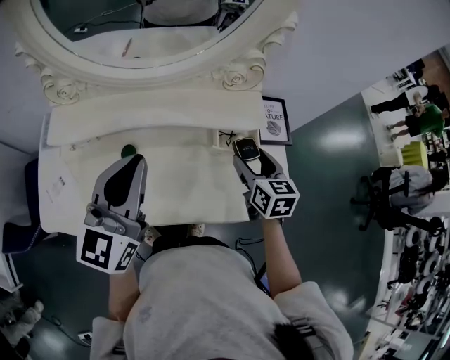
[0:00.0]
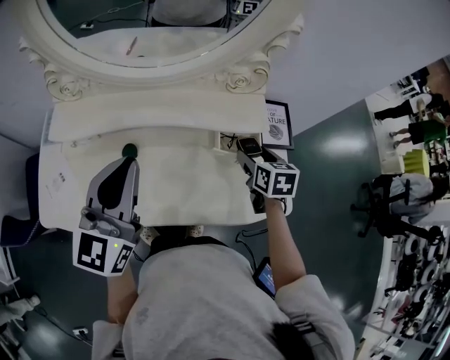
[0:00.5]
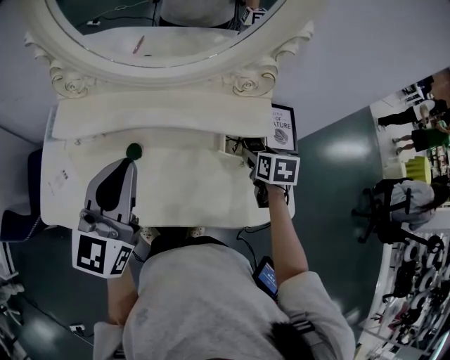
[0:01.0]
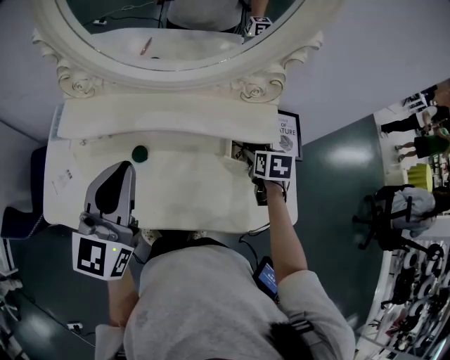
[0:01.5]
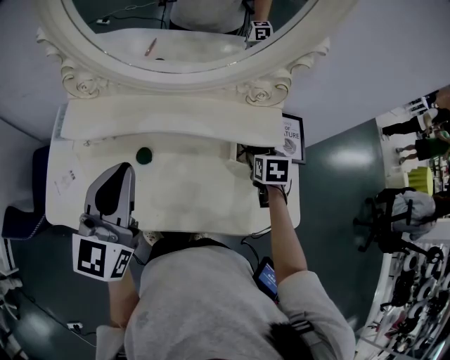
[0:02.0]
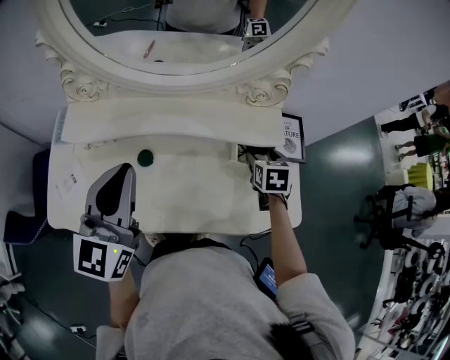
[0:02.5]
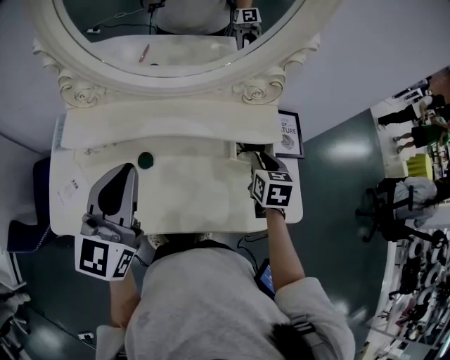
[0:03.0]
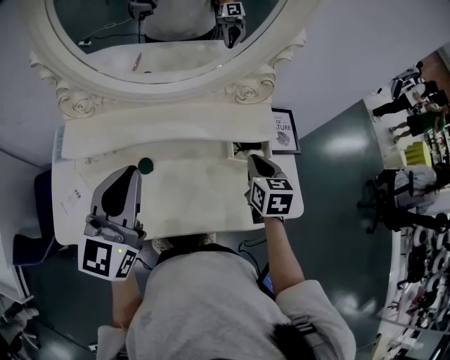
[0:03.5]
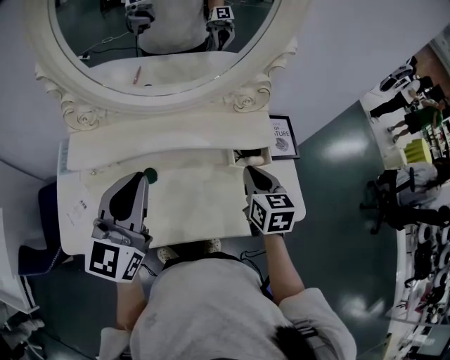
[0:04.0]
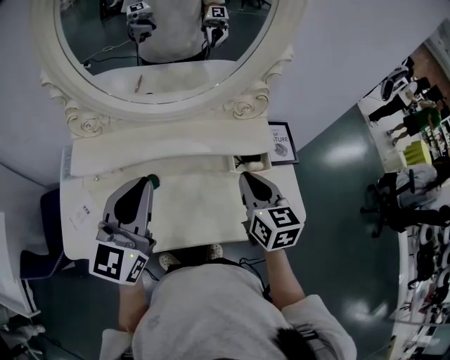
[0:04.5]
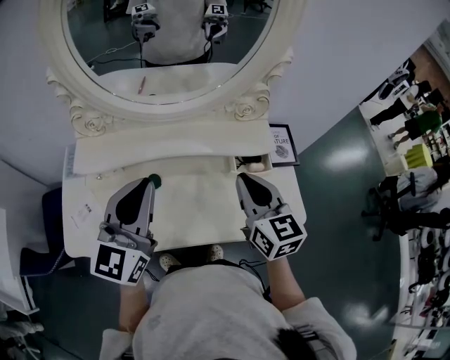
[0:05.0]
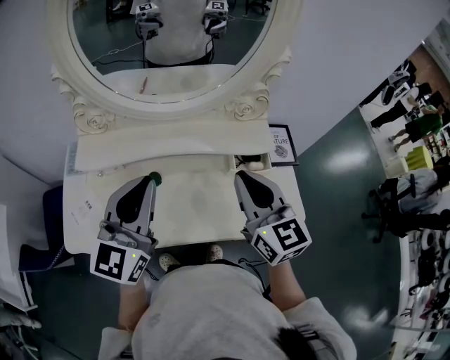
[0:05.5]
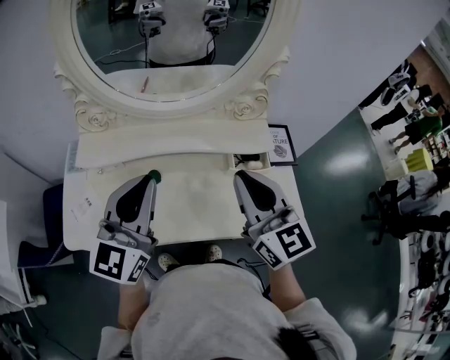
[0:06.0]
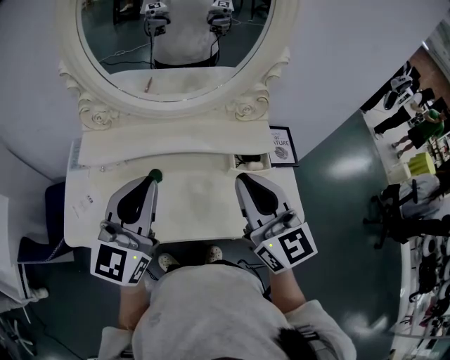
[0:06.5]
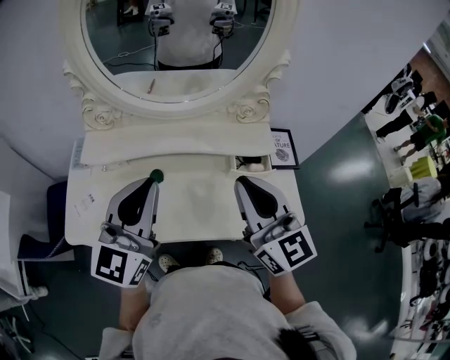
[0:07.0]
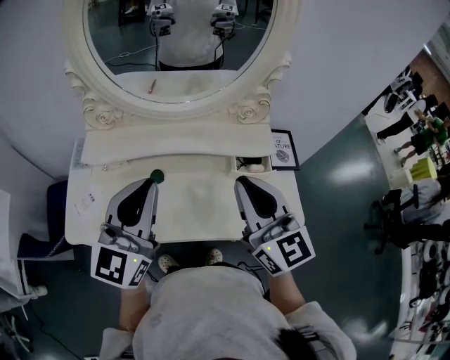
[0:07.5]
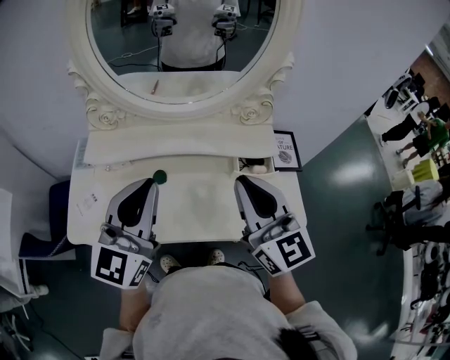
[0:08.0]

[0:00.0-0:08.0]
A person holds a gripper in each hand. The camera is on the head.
0:00.0 to 0:02.0: The right gripper shifts some 10 cm forward and downward, and turns by approximately 30 degrees. The left gripper is displaced to the left by some 5 cm.
0:02.0 to 0:04.0: The right gripper heads upward, backward and to the left, covering some 15 cm, swivels roughly 30 degrees, and closes its fingers.
0:04.0 to 0:06.0: The right gripper goes approximately 20 cm upward, backward and to the left, and turns by about 40 degrees.
0:06.0 to 0:08.0: There are only small adjustments of the grippers.

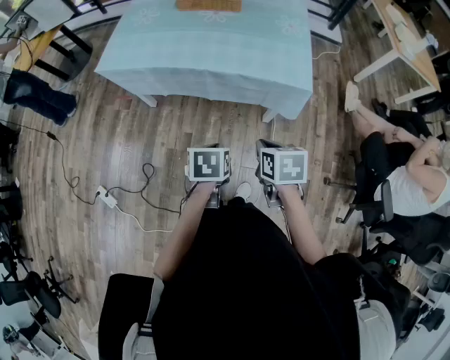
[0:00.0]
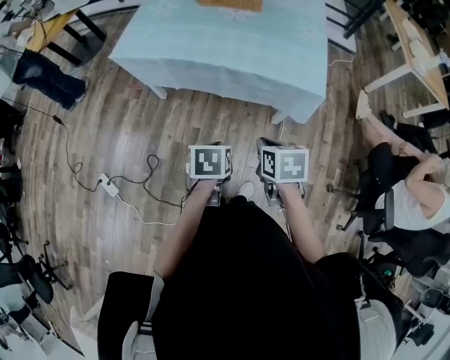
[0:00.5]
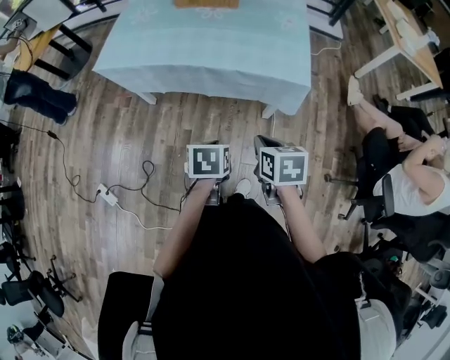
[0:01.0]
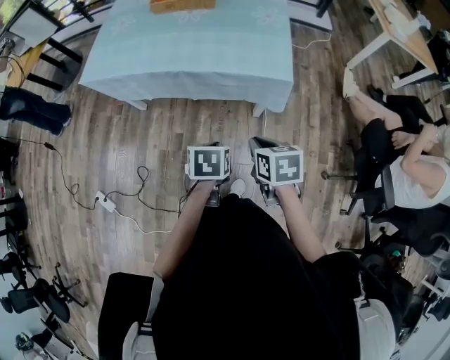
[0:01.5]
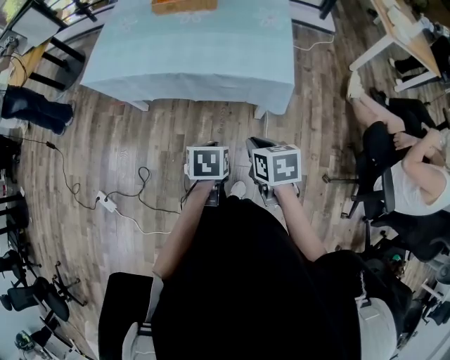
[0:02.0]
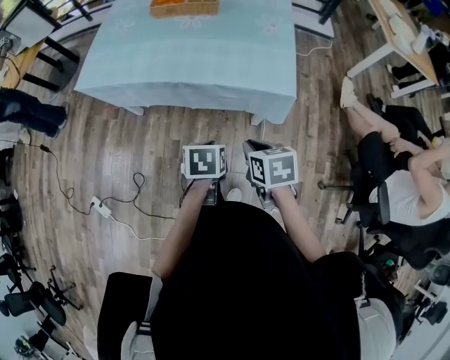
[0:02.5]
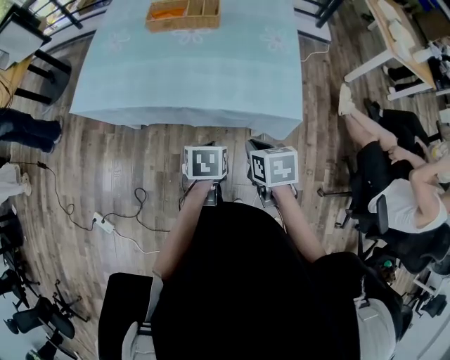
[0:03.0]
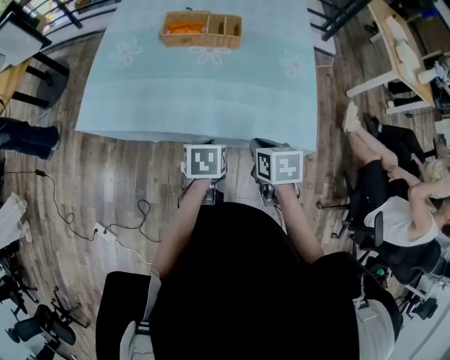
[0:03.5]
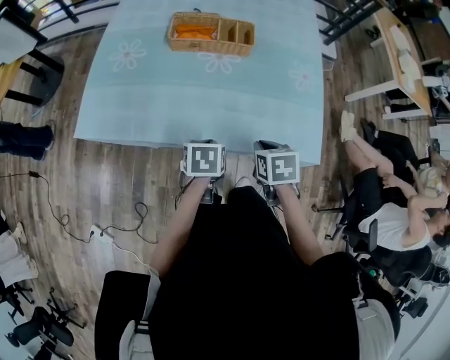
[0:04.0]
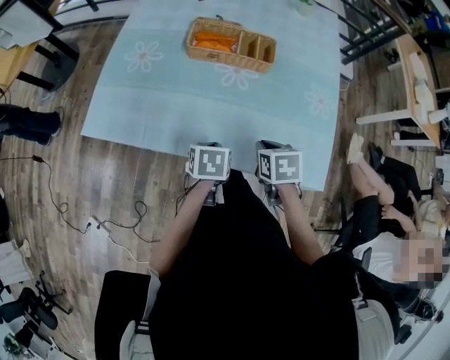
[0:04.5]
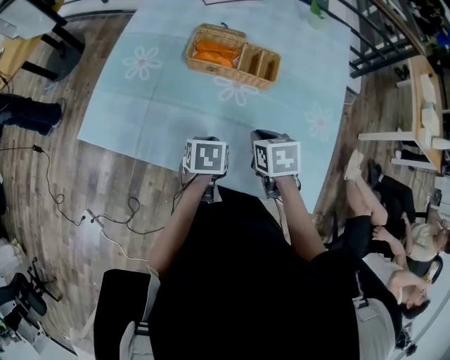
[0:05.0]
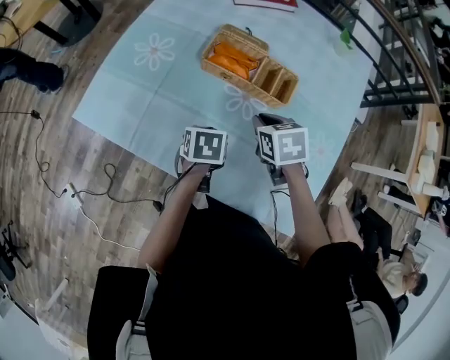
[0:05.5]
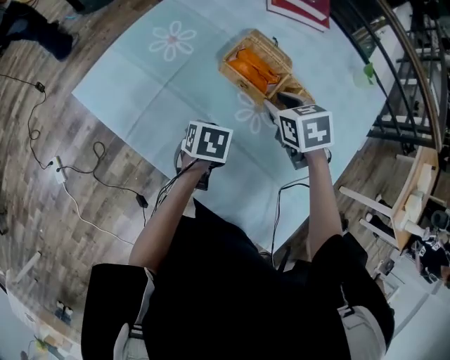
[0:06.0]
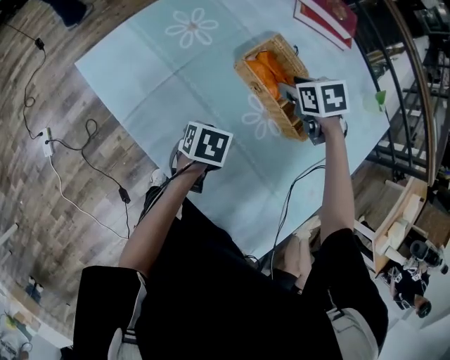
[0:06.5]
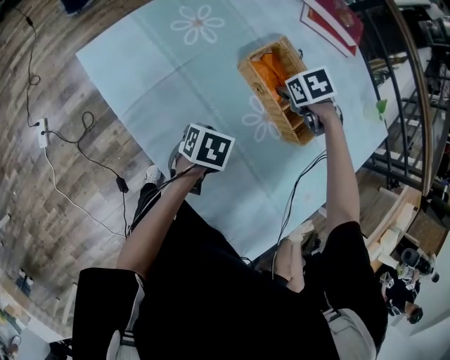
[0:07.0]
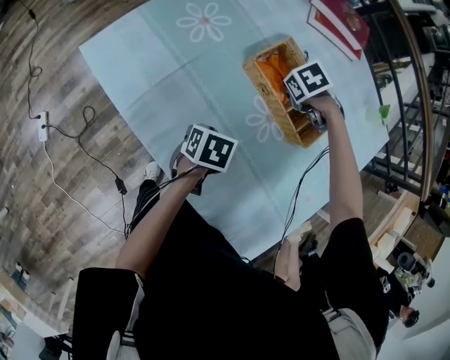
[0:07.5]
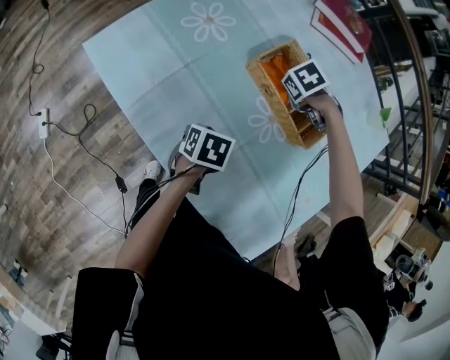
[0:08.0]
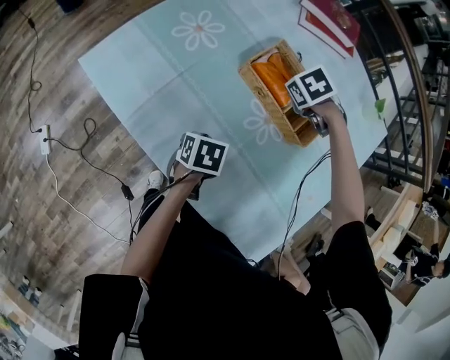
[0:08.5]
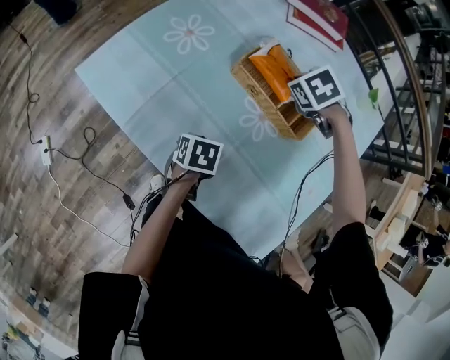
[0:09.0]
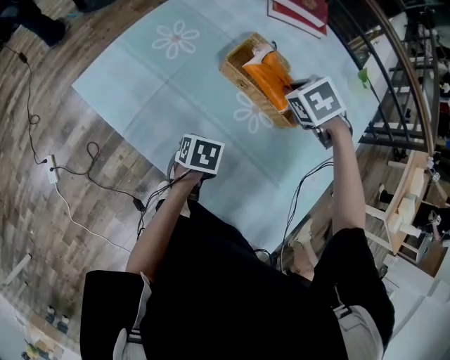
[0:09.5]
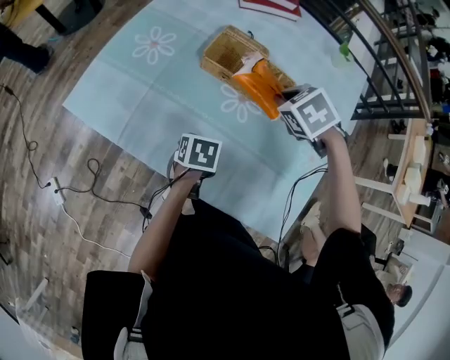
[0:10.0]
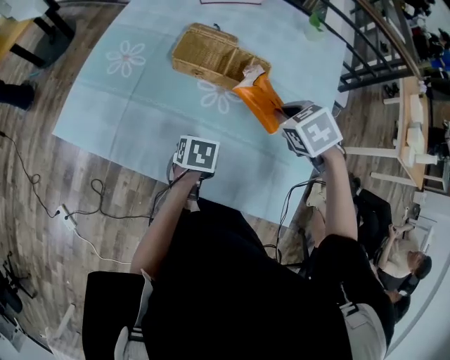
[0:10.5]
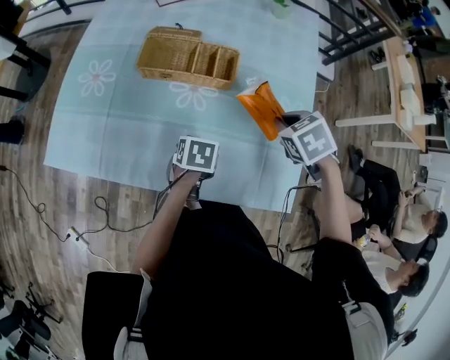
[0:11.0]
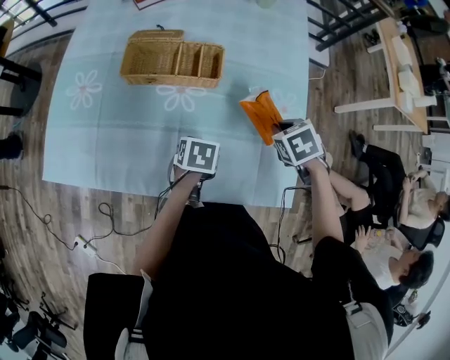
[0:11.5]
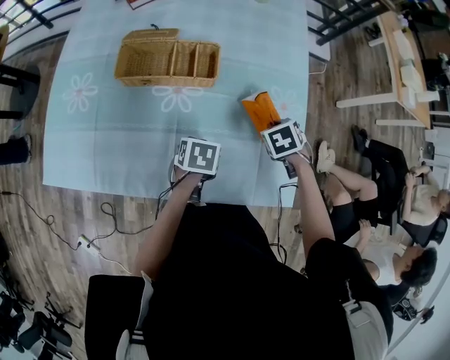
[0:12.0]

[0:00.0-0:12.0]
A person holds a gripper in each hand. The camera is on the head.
0:00.0 to 0:02.0: The two grippers go roughly 5 cm to the right.
0:02.0 to 0:04.0: The left gripper goes roughly 35 cm forward and to the left; the right gripper is displaced forward by about 30 cm.
0:04.0 to 0:06.0: The right gripper changes place by roughly 40 cm, twists roughly 40 degrees counterclockwise, seen from behind, and opens up. The left gripper ends up roughly 25 cm from where it was, and rotates some 20 degrees.
0:06.0 to 0:08.0: The left gripper goes approximately 5 cm downward. Meanwhile the right gripper is displaced downward by some 15 cm, swivels some 40 degrees, and closes.
0:08.0 to 0:10.0: The left gripper changes place by about 5 cm, while the right gripper shifts about 15 cm upward, and rotates roughly 20 degrees.
0:10.0 to 0:12.0: The right gripper changes place by approximately 30 cm, and rotates around the line of its fingers by approximately 40 degrees, clockwise from behind. The left gripper changes place by about 15 cm, and turns by some 30 degrees.

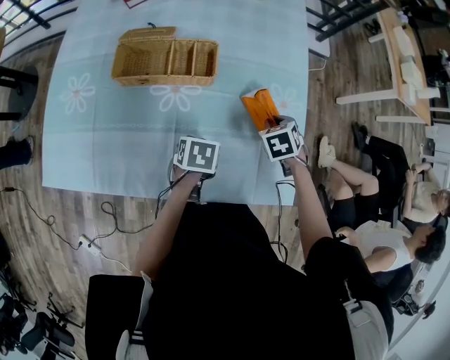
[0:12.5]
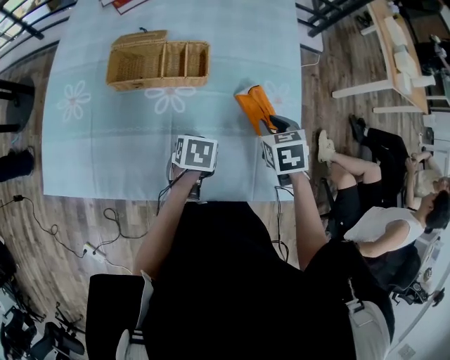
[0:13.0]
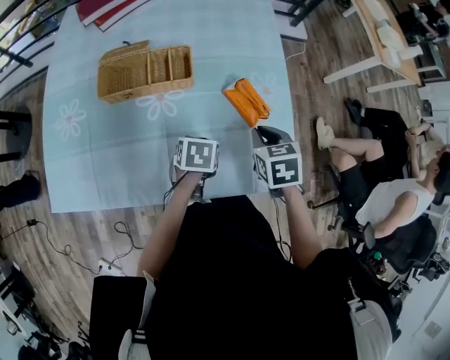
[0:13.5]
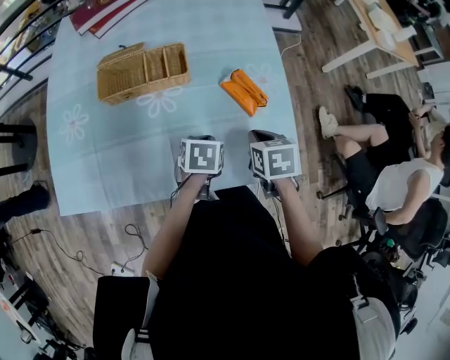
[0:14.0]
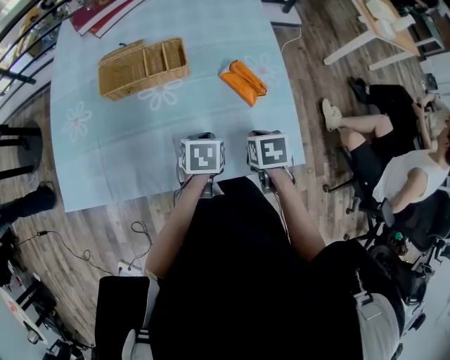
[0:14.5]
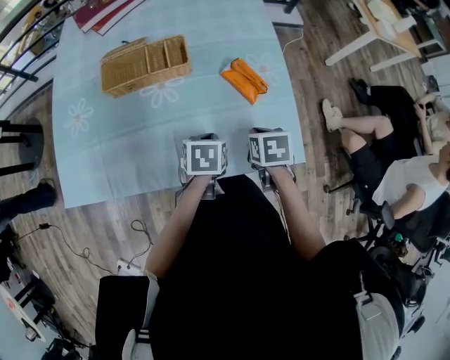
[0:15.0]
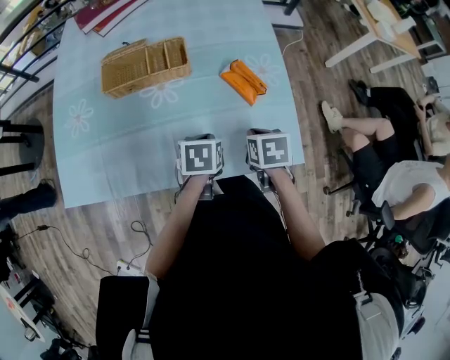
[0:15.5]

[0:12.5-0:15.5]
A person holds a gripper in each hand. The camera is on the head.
0:12.5 to 0:14.0: The right gripper goes about 15 cm backward and upward, and rotates some 30 degrees. Meanwhile the left gripper moves about 5 cm.
0:14.0 to 0:15.5: The grippers make only small movements.

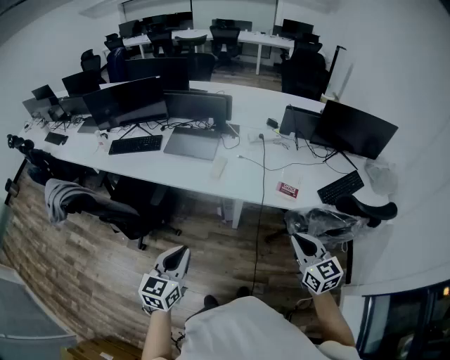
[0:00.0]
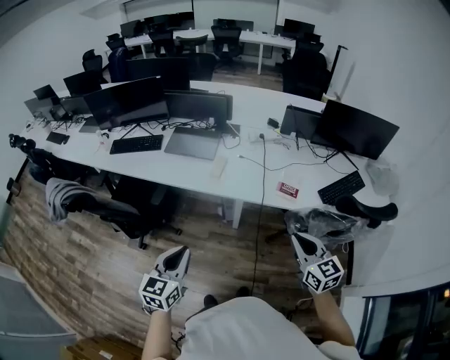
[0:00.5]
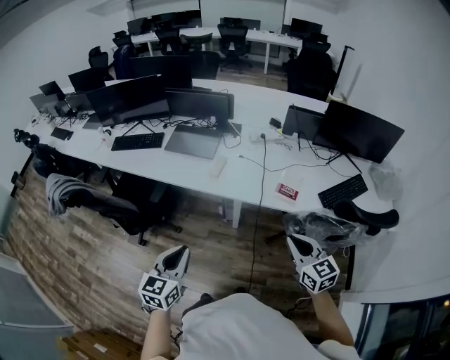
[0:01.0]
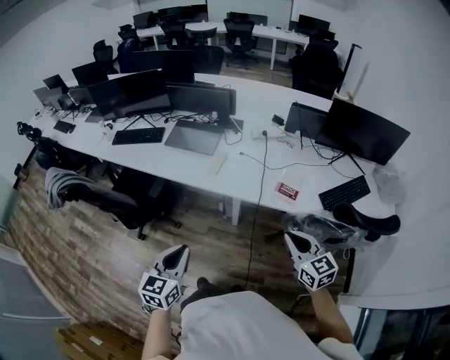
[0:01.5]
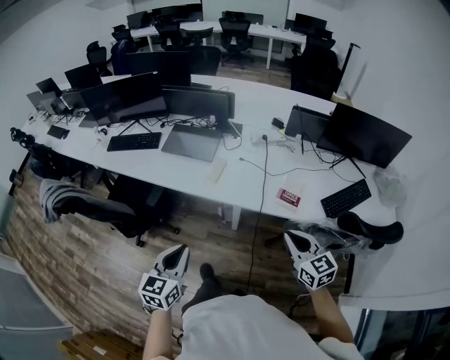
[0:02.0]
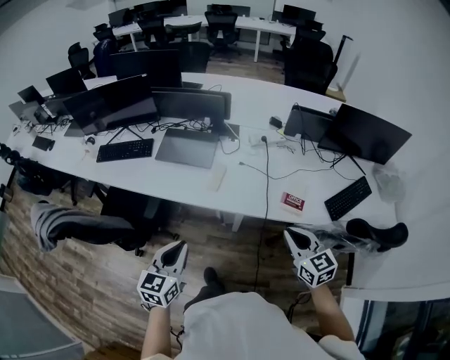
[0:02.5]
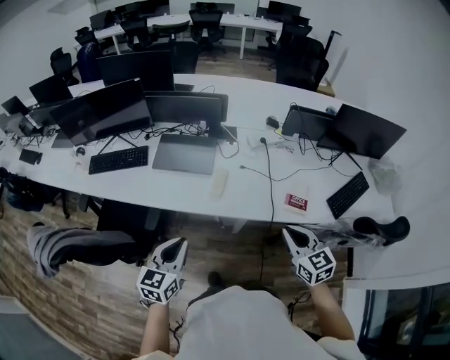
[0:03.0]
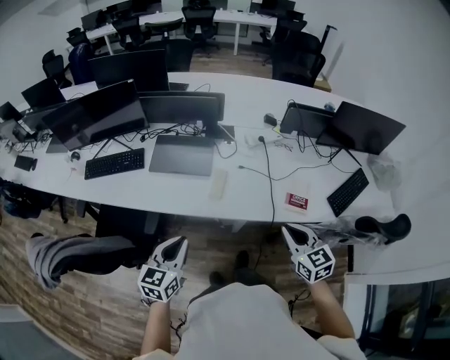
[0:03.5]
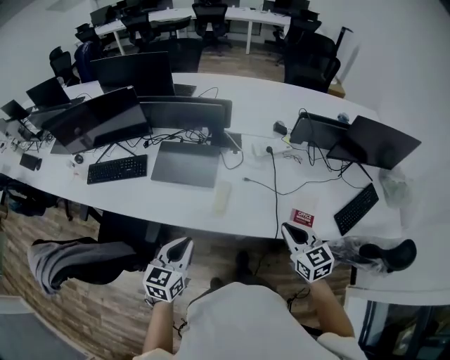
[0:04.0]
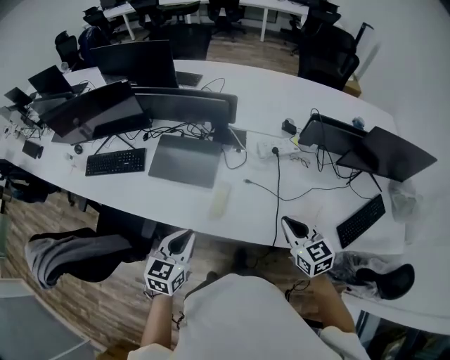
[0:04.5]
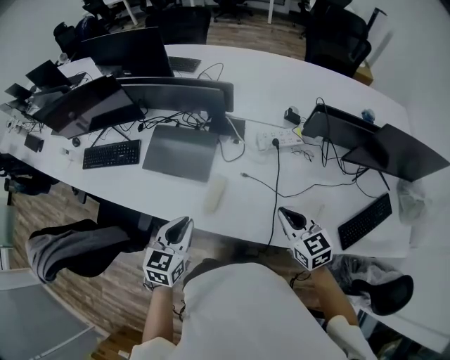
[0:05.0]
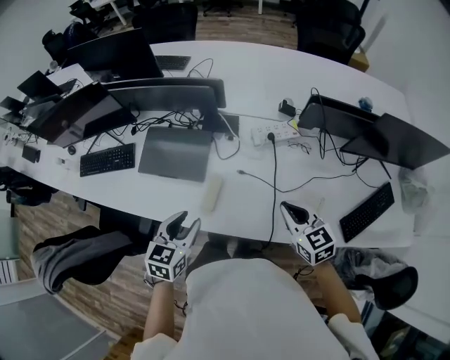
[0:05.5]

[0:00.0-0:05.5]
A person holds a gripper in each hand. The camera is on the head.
0:00.0 to 0:02.0: The left gripper is displaced forward and to the right by about 10 cm, while the right gripper shifts about 10 cm forward.
0:02.0 to 0:03.5: Both grippers move forward and to the left, about 20 cm.
0:03.5 to 0:05.5: The right gripper goes roughly 25 cm forward; the left gripper moves forward and to the right, about 25 cm, and opens up.
